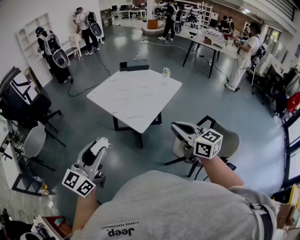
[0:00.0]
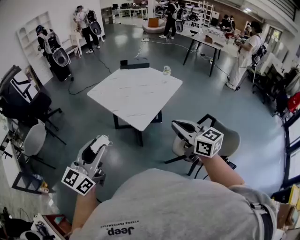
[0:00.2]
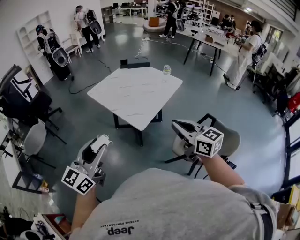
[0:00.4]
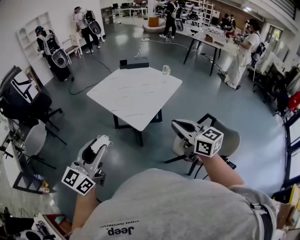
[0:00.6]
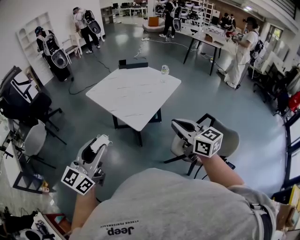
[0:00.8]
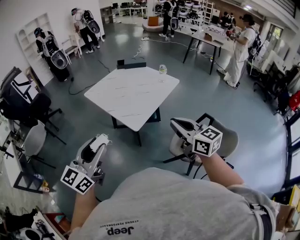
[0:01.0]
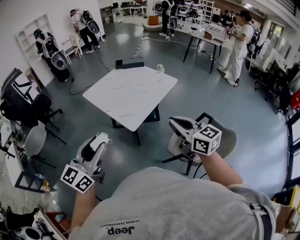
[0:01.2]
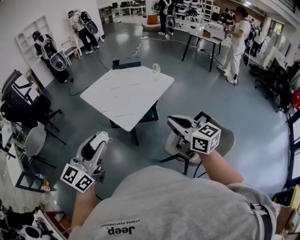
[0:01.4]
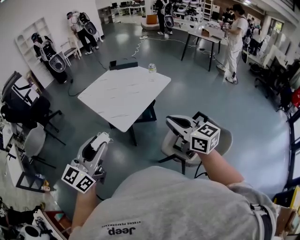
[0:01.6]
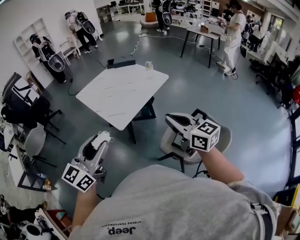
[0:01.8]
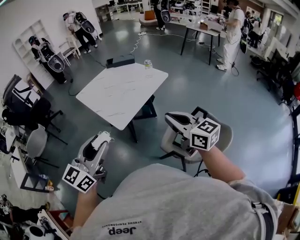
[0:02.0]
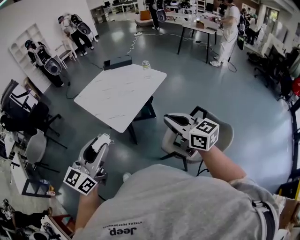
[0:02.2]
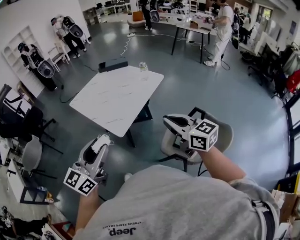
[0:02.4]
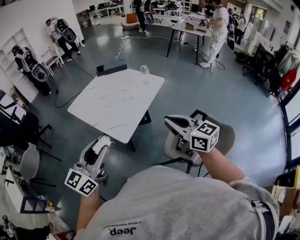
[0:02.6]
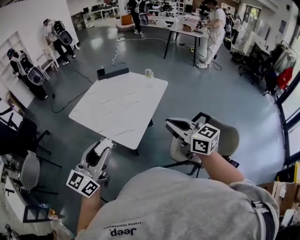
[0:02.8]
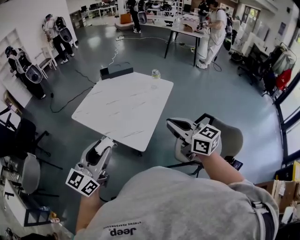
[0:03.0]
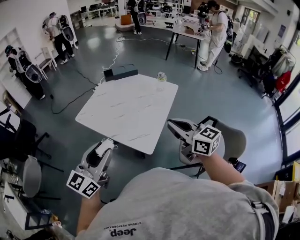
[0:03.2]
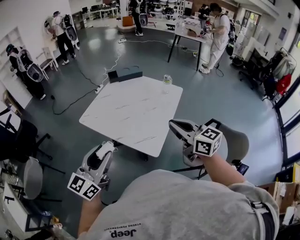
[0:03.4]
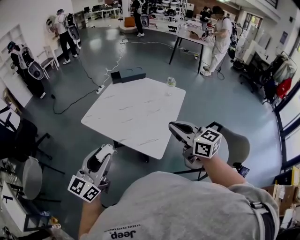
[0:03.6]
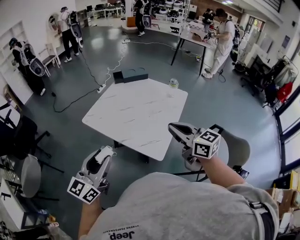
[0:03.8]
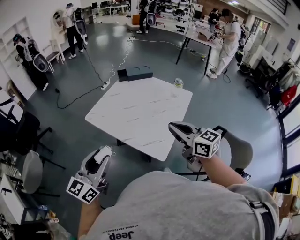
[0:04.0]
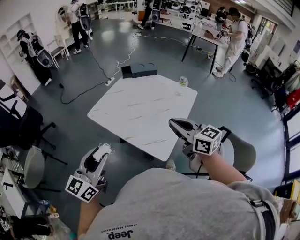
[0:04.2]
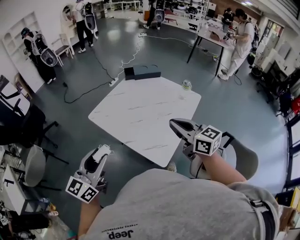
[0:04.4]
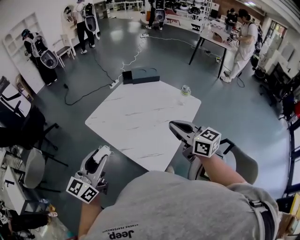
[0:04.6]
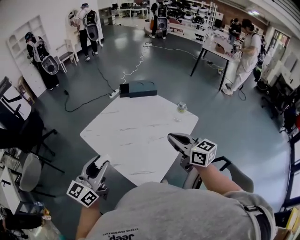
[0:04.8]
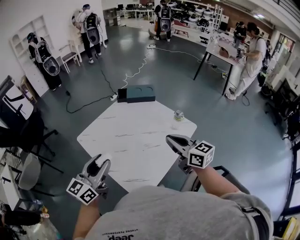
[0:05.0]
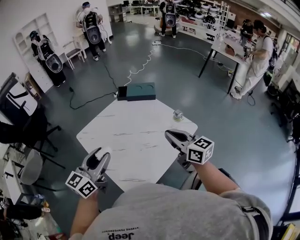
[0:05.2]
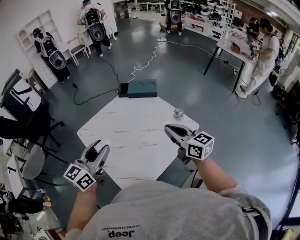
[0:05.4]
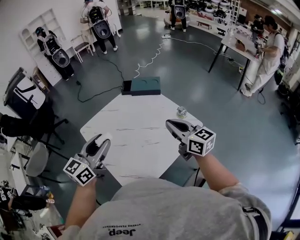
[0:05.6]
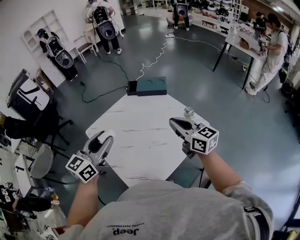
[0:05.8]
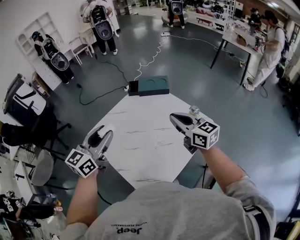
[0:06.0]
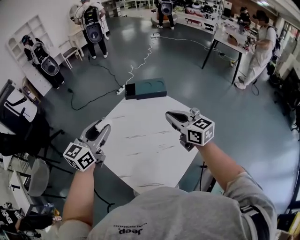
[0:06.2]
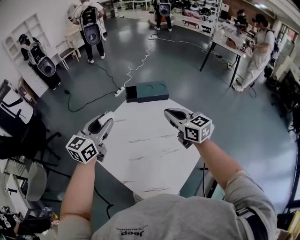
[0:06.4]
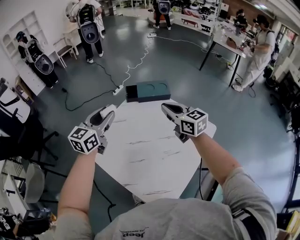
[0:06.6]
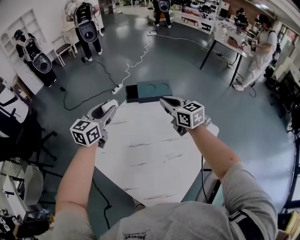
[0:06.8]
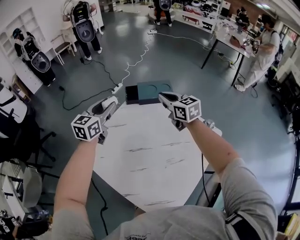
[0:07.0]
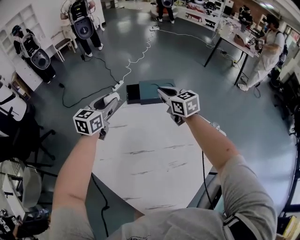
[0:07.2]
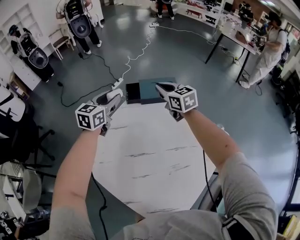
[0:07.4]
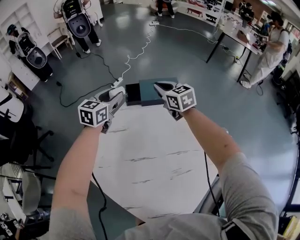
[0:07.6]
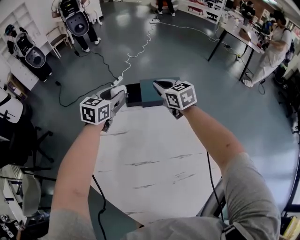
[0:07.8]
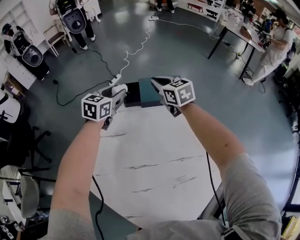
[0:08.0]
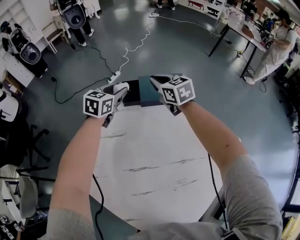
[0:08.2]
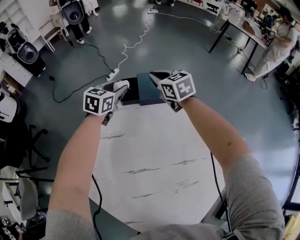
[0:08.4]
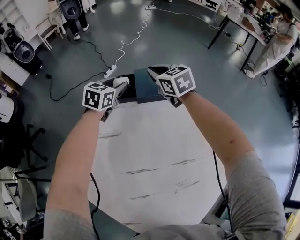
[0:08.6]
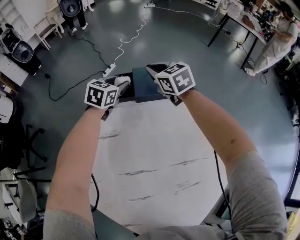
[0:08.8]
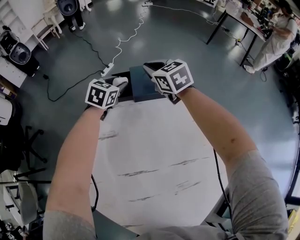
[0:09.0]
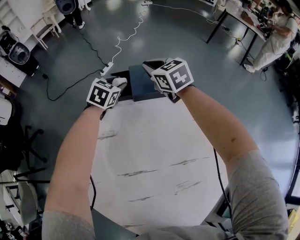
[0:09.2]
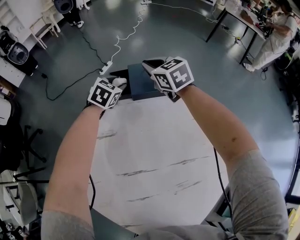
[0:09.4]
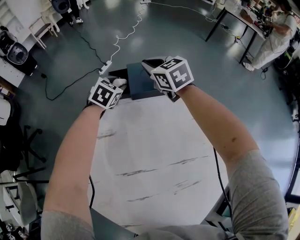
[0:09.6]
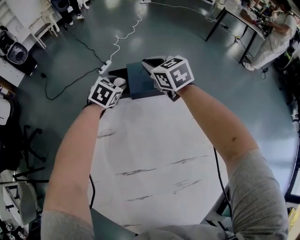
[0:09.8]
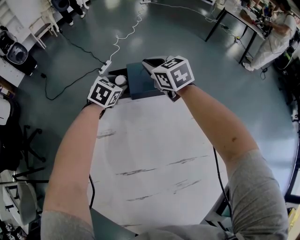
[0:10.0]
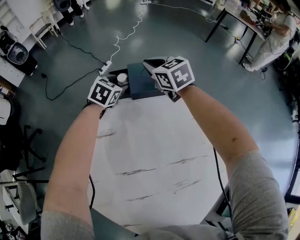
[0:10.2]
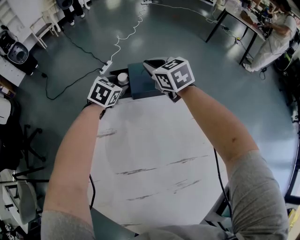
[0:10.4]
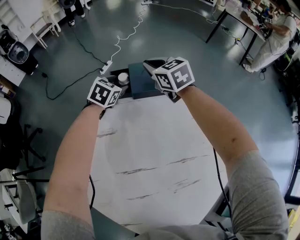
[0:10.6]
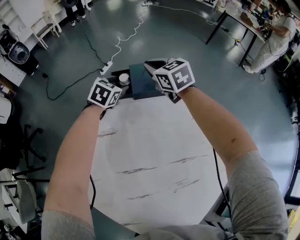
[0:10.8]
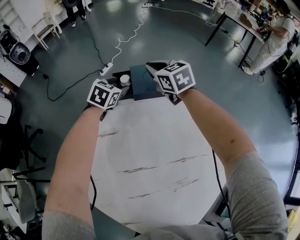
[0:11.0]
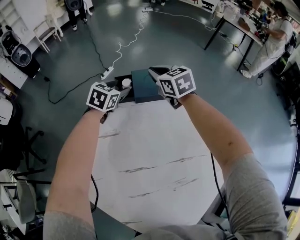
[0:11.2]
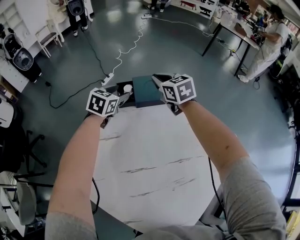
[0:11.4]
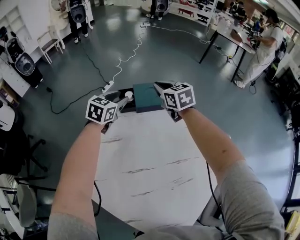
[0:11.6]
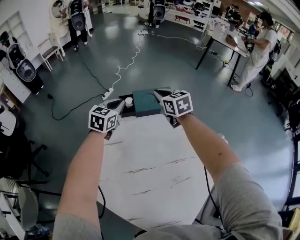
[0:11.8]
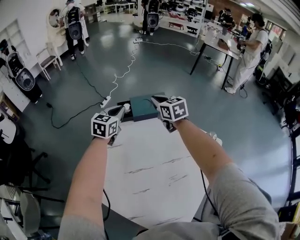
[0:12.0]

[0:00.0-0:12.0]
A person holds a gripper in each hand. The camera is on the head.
0:00.0 to 0:01.6: The two grippers go roughly 15 cm to the right.
0:01.6 to 0:03.0: Both grippers travel together forward and to the left, roughly 20 cm.
0:03.0 to 0:04.4: The left gripper shifts approximately 15 cm to the left and forward. The right gripper goes approximately 20 cm forward and to the left.
0:04.4 to 0:06.0: Both grippers travel together forward and to the right, roughly 30 cm.
0:06.0 to 0:07.6: The grippers both shift forward by roughly 40 cm. The right gripper turns by some 20 degrees.
0:07.6 to 0:09.0: The right gripper goes about 10 cm forward and downward. Meanwhile the left gripper moves downward and forward, roughly 20 cm, and turns by about 20 degrees.
0:09.0 to 0:10.4: The grippers stay close to where they were, moving slightly.
0:10.4 to 0:12.0: The right gripper shifts roughly 15 cm backward and upward; the left gripper is displaced upward and backward by about 20 cm, changes its angle by some 30 degrees, and closes.

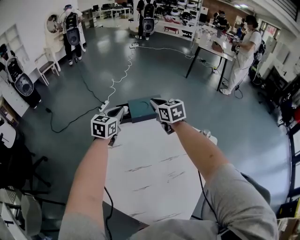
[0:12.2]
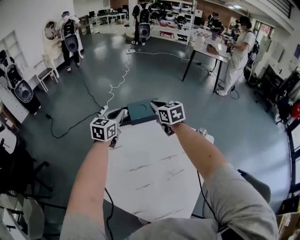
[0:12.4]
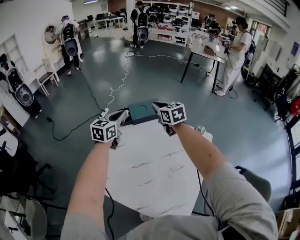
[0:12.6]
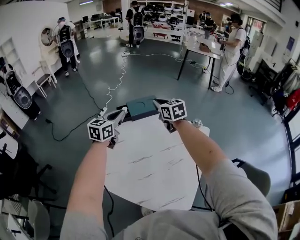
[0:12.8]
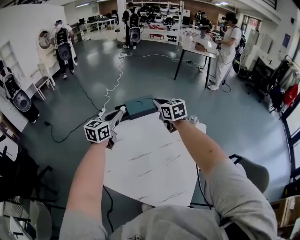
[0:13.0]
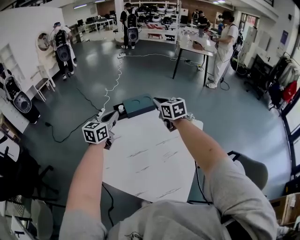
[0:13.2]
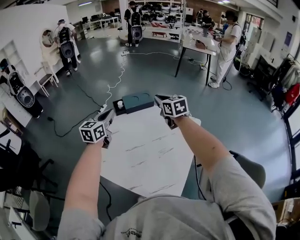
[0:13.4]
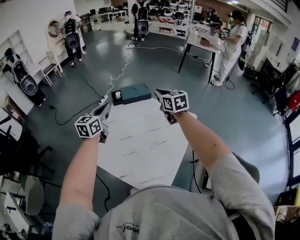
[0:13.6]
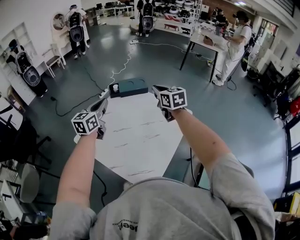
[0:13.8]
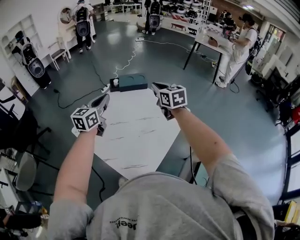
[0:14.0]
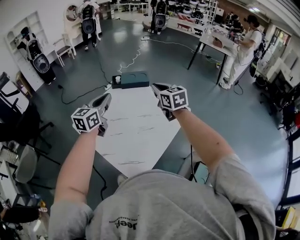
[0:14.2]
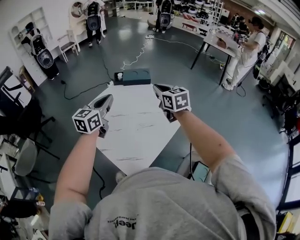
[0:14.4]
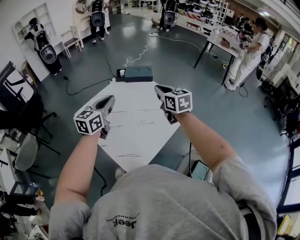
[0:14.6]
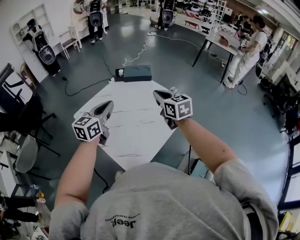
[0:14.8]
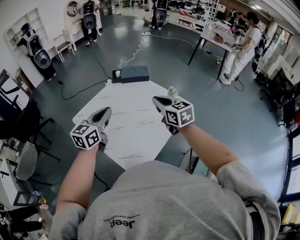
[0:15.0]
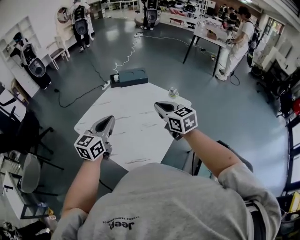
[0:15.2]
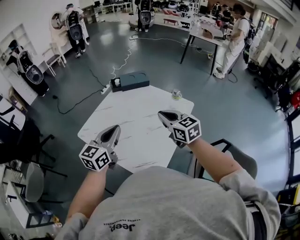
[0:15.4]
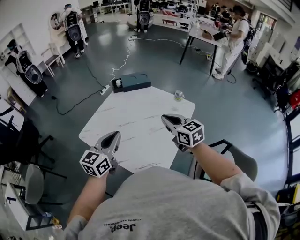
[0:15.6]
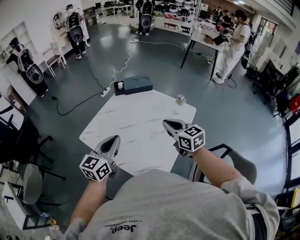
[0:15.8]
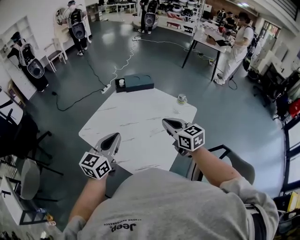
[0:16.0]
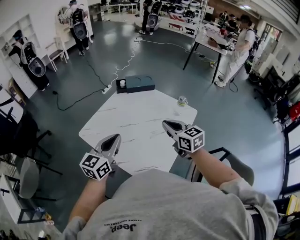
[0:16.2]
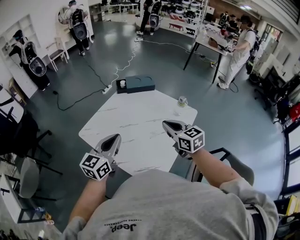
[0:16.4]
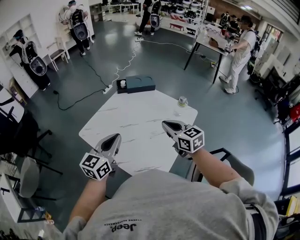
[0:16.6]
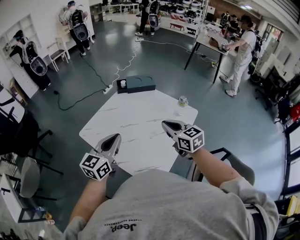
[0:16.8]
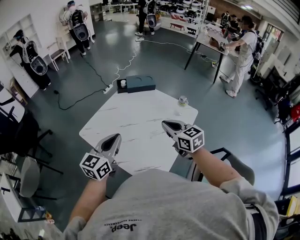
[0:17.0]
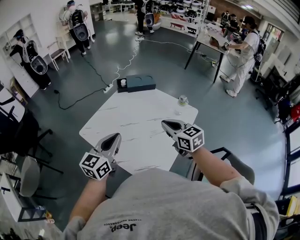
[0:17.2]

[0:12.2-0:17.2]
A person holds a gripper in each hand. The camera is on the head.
0:12.2 to 0:13.8: The left gripper heads backward and upward, covering approximately 30 cm. The right gripper moves backward, to the right and upward, approximately 25 cm.
0:13.8 to 0:15.6: The two grippers go roughly 20 cm backward.
0:15.6 to 0:17.2: There are only small adjustments of the grippers.

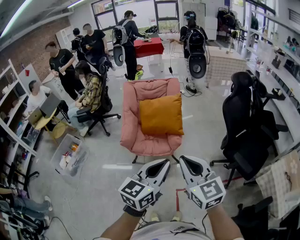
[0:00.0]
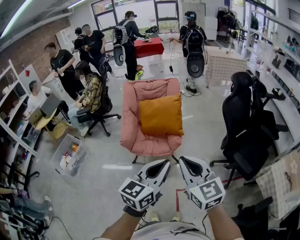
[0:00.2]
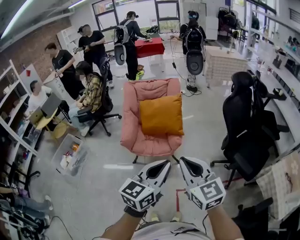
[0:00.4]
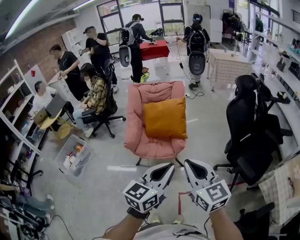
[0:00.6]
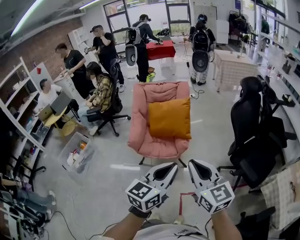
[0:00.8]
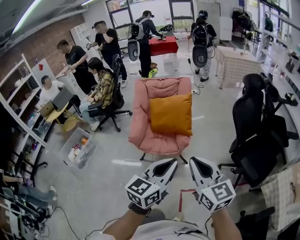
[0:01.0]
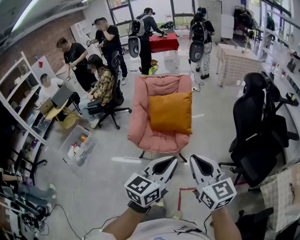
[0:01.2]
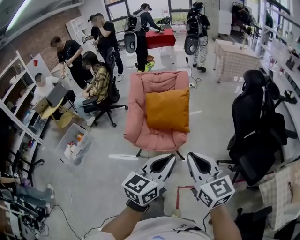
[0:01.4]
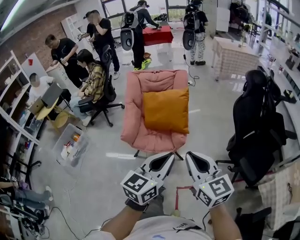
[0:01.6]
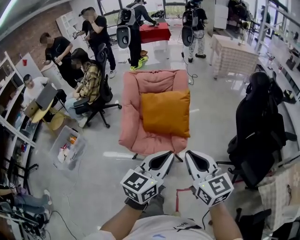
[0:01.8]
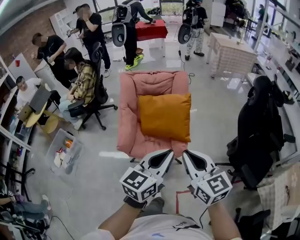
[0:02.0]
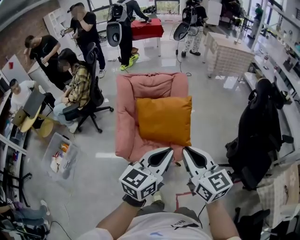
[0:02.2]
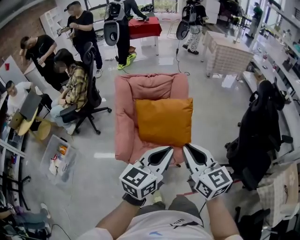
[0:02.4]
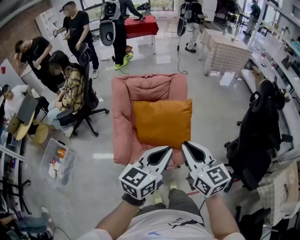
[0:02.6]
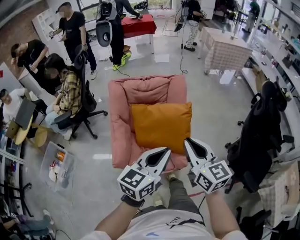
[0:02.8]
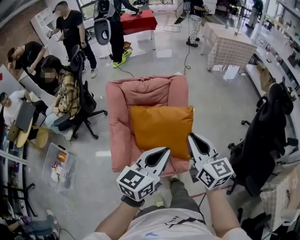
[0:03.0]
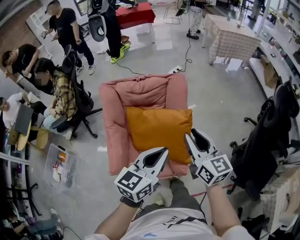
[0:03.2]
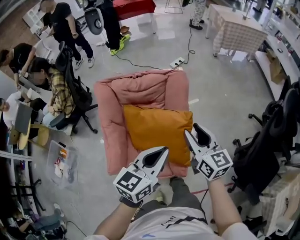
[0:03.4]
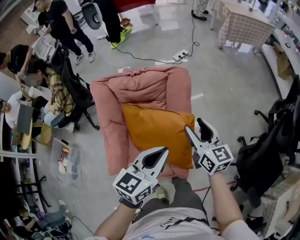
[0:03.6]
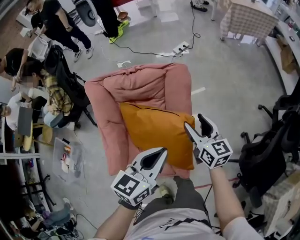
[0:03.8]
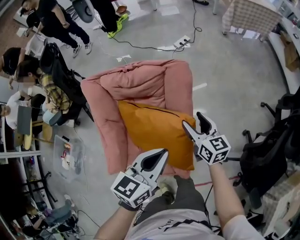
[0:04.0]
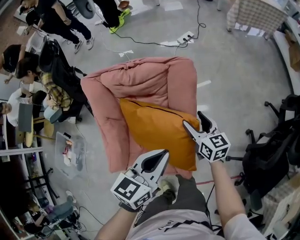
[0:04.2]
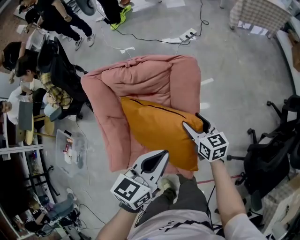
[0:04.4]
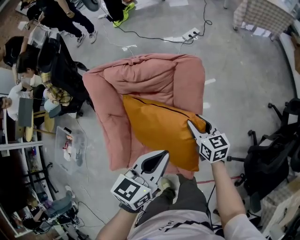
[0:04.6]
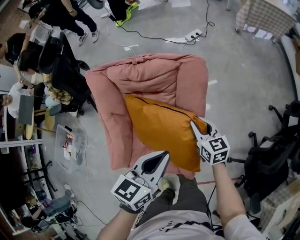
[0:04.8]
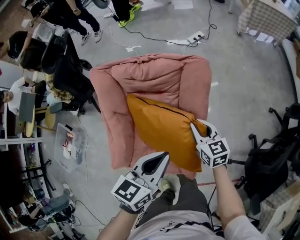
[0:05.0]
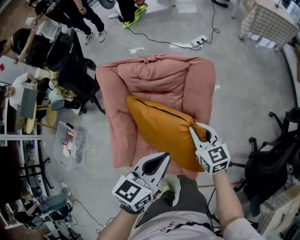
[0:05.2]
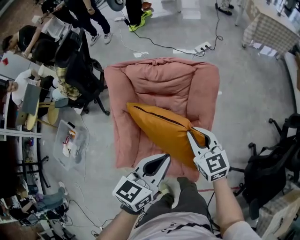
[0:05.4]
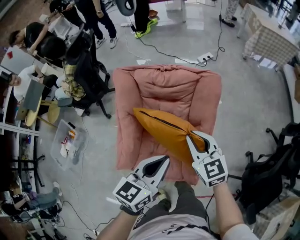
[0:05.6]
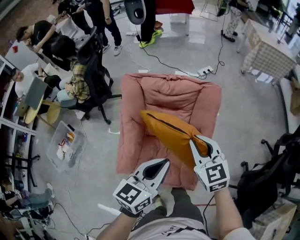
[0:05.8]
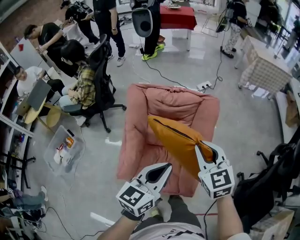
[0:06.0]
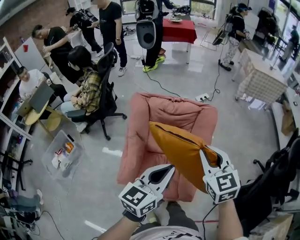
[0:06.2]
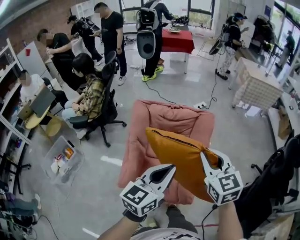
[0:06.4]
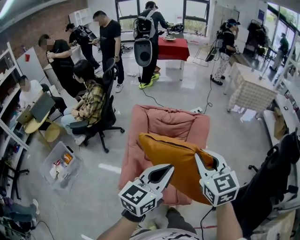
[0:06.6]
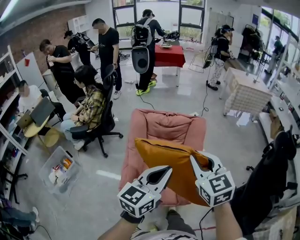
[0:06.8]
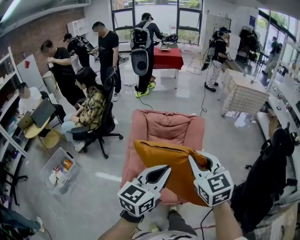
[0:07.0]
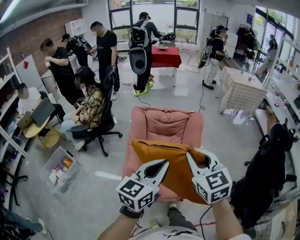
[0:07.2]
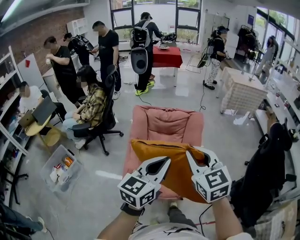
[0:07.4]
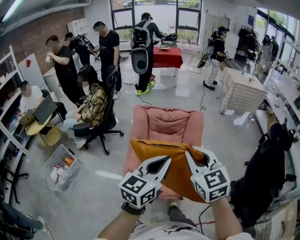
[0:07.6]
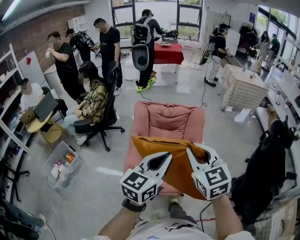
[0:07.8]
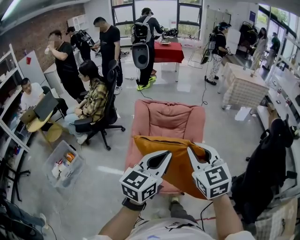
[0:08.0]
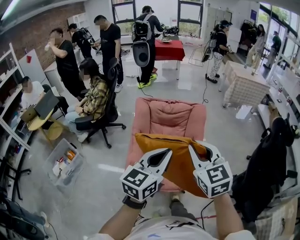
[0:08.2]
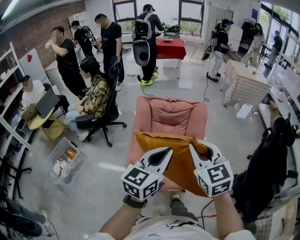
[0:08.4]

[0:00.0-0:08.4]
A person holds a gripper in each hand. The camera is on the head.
0:00.0 to 0:01.4: The right gripper changes place by about 5 cm; the left gripper changes place by approximately 5 cm.
0:01.4 to 0:02.8: Both grippers travel together forward, about 35 cm.
0:02.8 to 0:04.2: The two grippers go some 40 cm forward and downward. The left gripper changes its angle by some 20 degrees, while the right gripper swivels about 20 degrees, and opens its fingers.
0:04.2 to 0:05.6: The left gripper shifts approximately 15 cm to the left and backward; the right gripper travels to the left, upward and backward by roughly 20 cm, turns by approximately 30 degrees, and closes up.
0:05.6 to 0:07.0: The right gripper goes approximately 35 cm upward and backward; the left gripper travels backward, upward and to the left by approximately 25 cm.
0:07.0 to 0:08.4: There are only small adjustments of the grippers.
